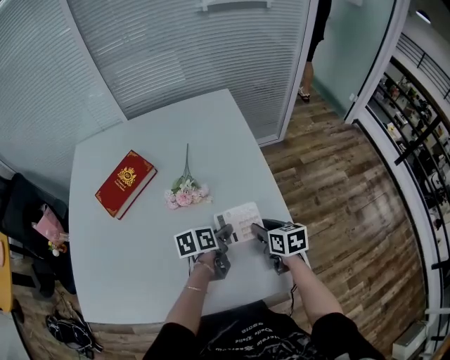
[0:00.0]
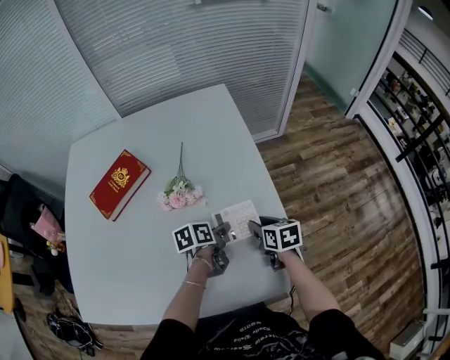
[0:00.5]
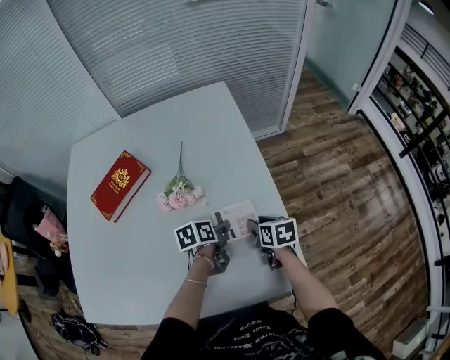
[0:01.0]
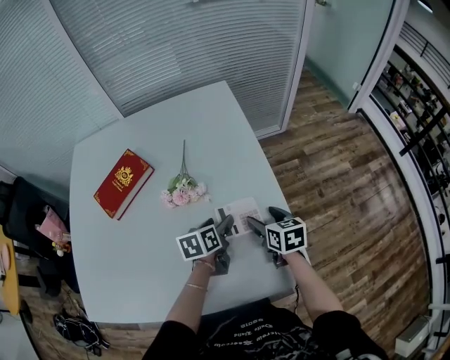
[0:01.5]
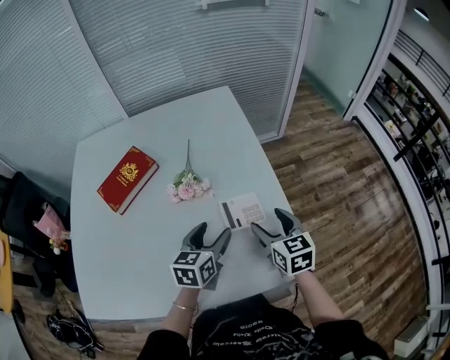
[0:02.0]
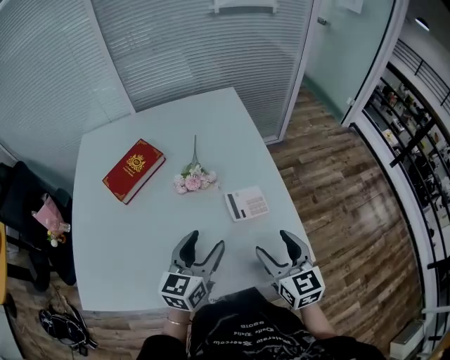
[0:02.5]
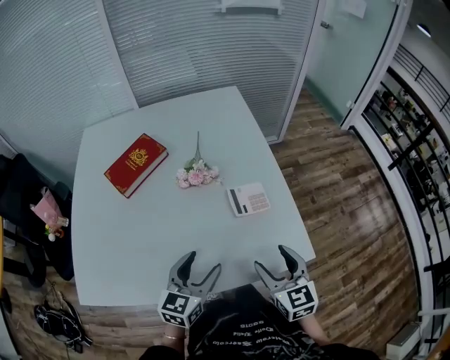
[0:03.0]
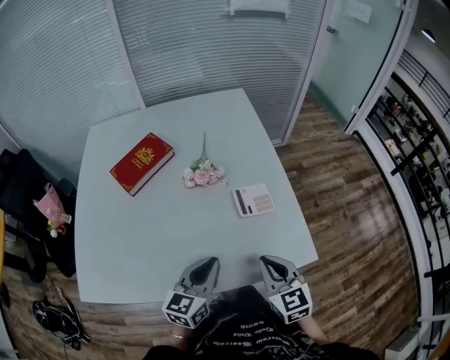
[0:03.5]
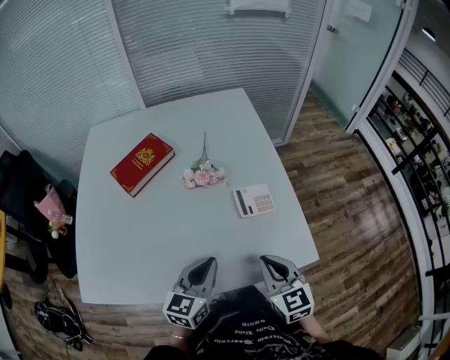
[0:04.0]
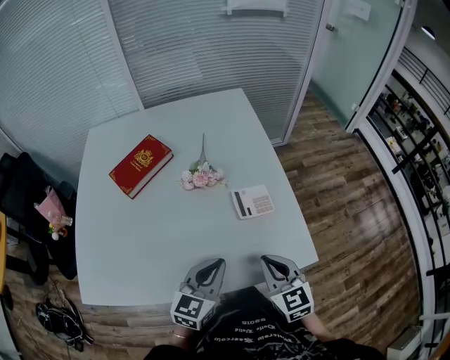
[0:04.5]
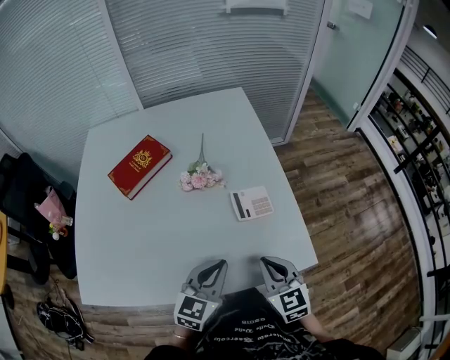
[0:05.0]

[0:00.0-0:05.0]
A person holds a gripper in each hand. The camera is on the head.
0.0 to 2.5 s: The left gripper goes some 20 cm upward, backward and to the left, rotates about 50 degrees, and opens its fingers, while the right gripper travels backward and upward by roughly 20 cm, turns by some 30 degrees, and opens.
2.5 to 5.0 s: Both grippers travel together backward, roughly 5 cm. The right gripper closes its fingers; the left gripper closes up.

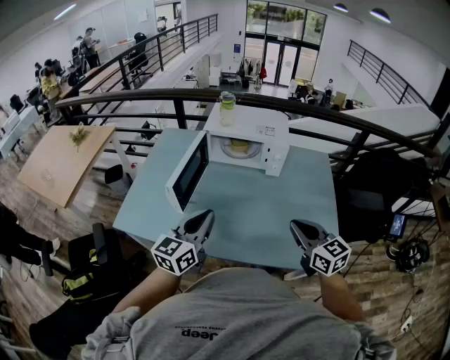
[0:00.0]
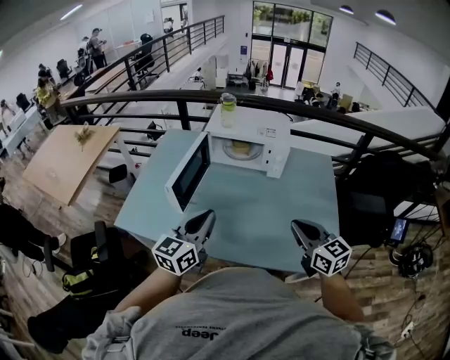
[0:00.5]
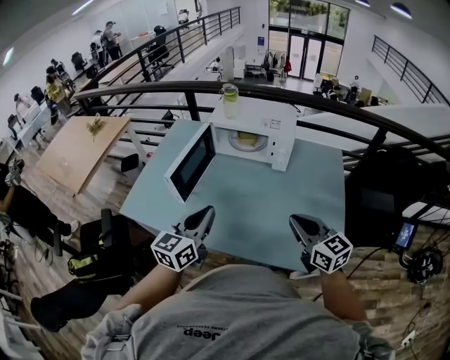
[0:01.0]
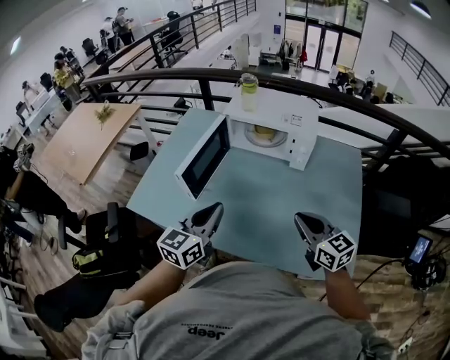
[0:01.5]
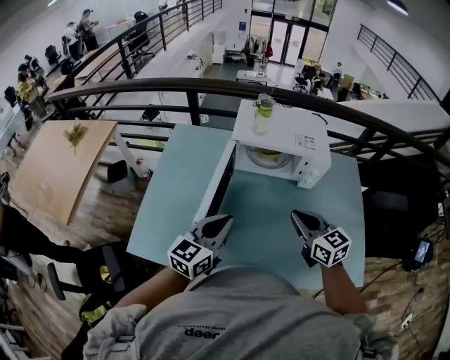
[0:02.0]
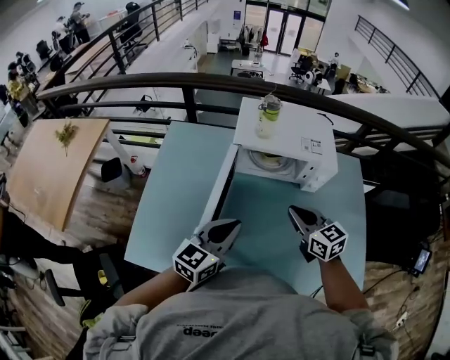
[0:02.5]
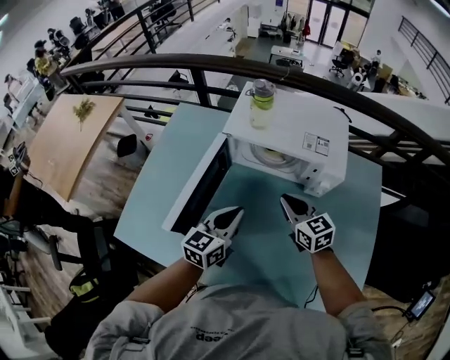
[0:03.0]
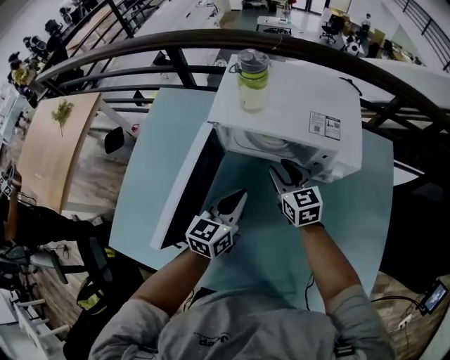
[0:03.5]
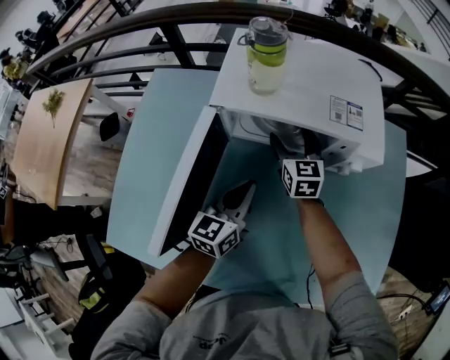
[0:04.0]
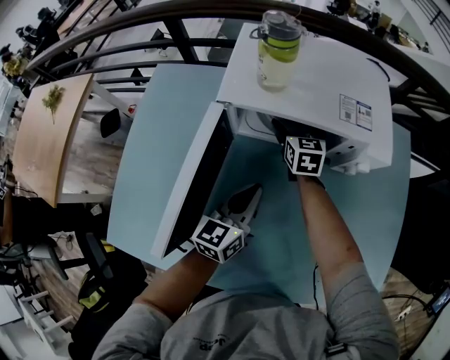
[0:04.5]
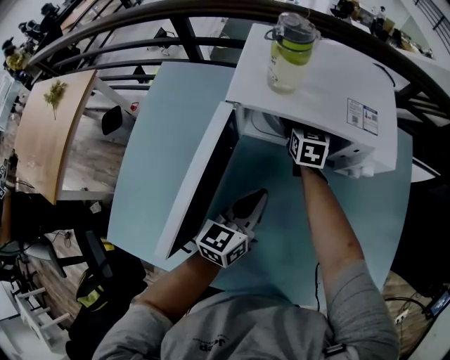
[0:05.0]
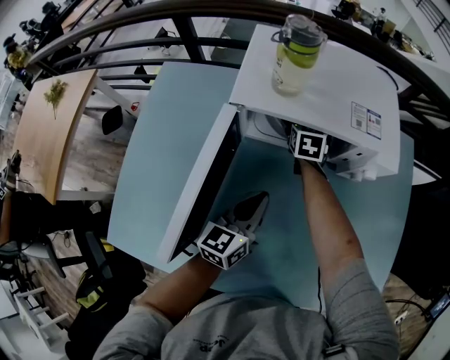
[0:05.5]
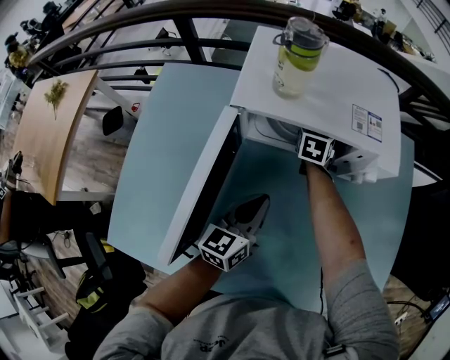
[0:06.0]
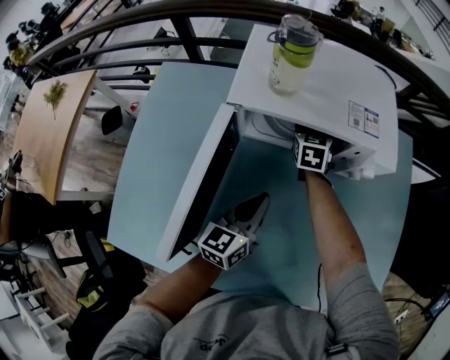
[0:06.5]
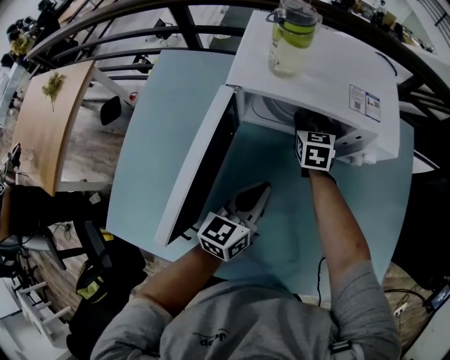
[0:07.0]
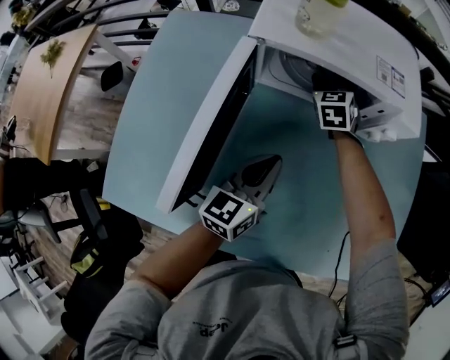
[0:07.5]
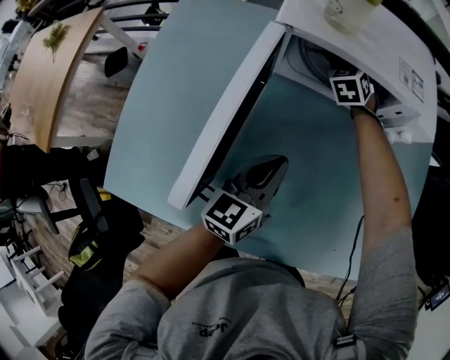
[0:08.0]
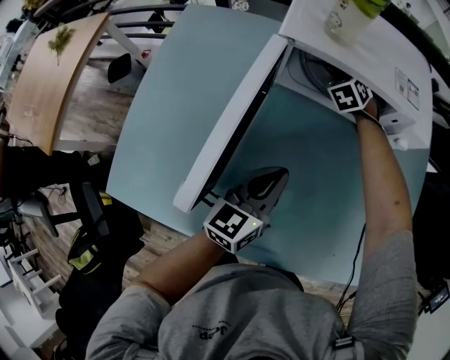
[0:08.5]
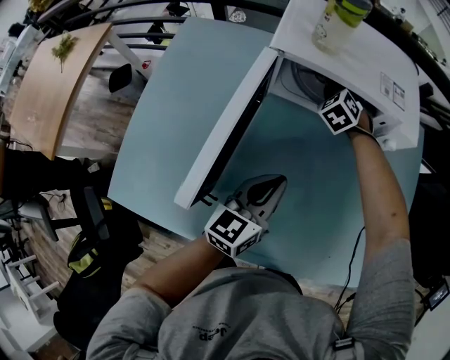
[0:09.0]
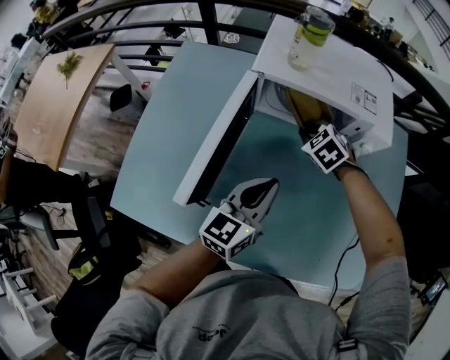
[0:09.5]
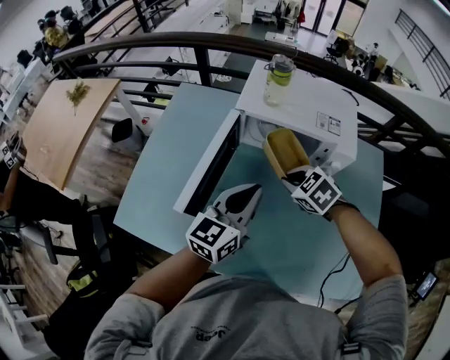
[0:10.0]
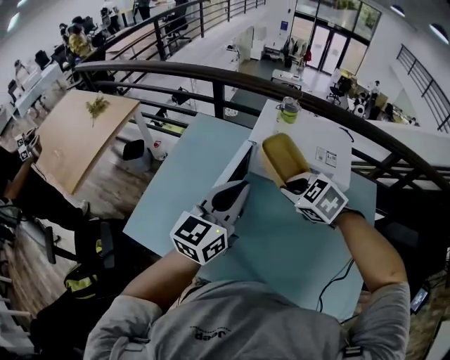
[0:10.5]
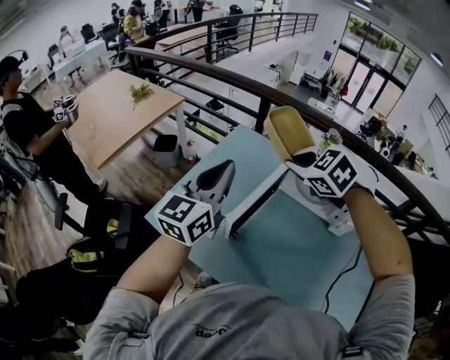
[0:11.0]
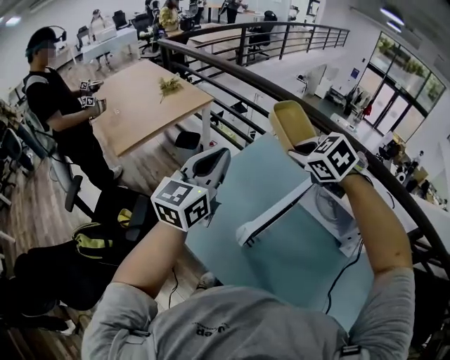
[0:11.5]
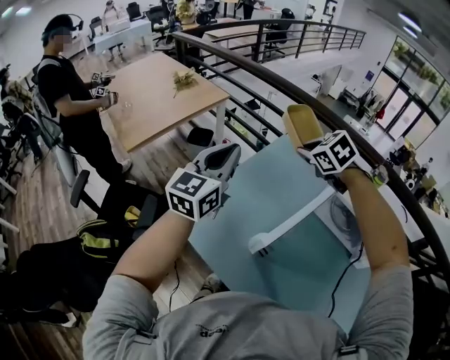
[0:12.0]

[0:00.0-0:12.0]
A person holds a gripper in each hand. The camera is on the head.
0.0 to 2.0 s: The grippers both shift forward and to the left by roughly 20 cm.
2.0 to 4.0 s: The right gripper is displaced forward and downward by about 35 cm, and opens its fingers; the left gripper is displaced forward, downward and to the right by approximately 30 cm.
4.0 to 6.0 s: The right gripper travels forward by approximately 10 cm, rotates about 30 degrees, and closes up.
6.0 to 8.0 s: The right gripper swivels some 40 degrees, while the left gripper moves backward, roughly 5 cm.
8.0 to 10.0 s: The right gripper ends up some 30 cm from where it was, changes its angle by approximately 50 degrees, and closes its fingers. Meanwhile the left gripper goes roughly 15 cm upward.
10.0 to 12.0 s: Both grippers travel together to the left, forward and upward, roughly 40 cm. The left gripper turns by about 40 degrees, while the right gripper swivels about 20 degrees.

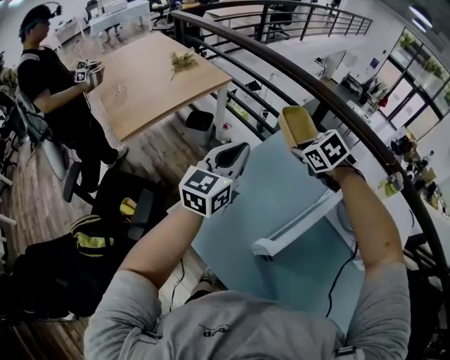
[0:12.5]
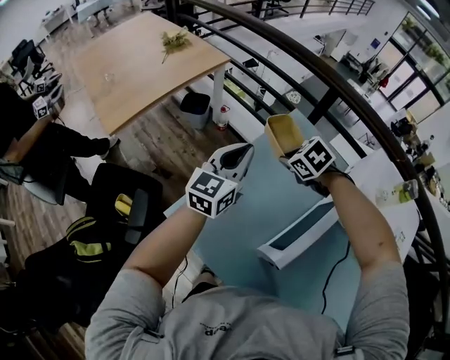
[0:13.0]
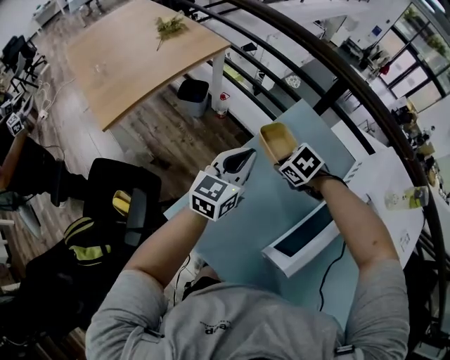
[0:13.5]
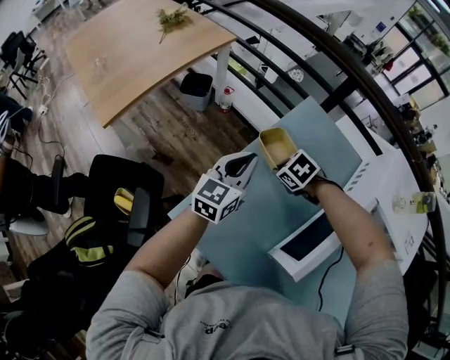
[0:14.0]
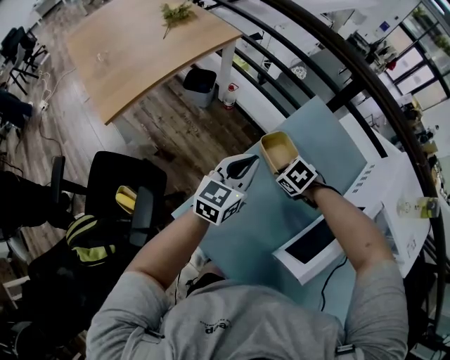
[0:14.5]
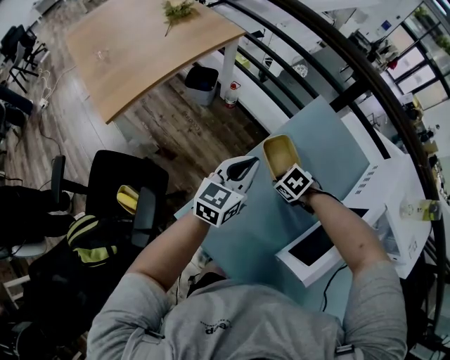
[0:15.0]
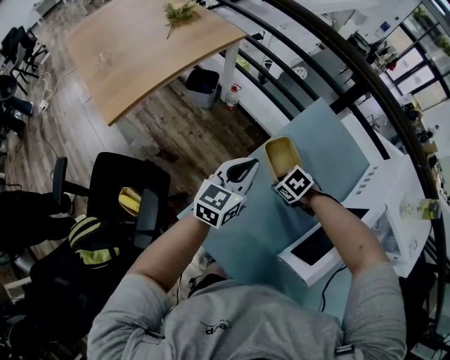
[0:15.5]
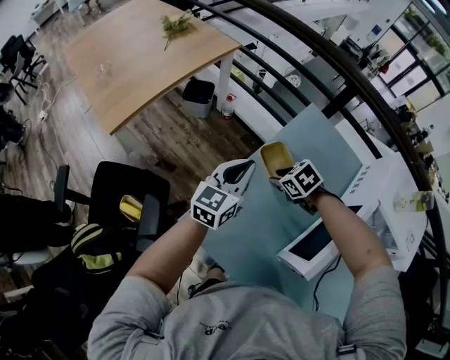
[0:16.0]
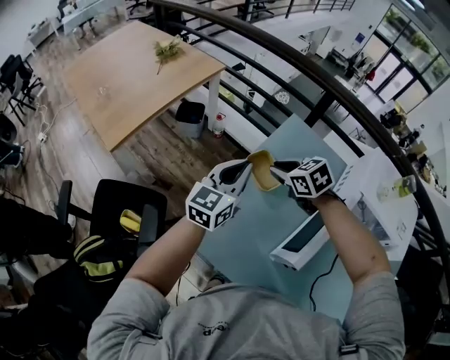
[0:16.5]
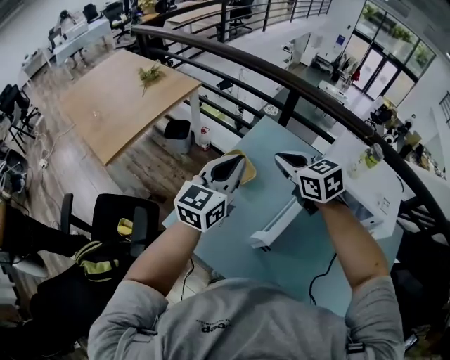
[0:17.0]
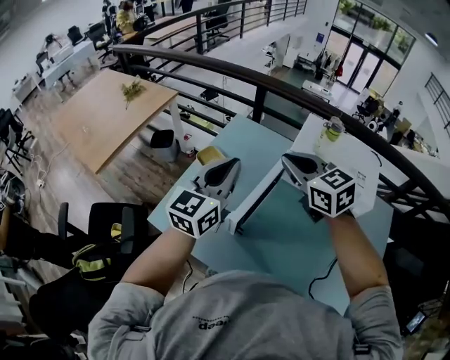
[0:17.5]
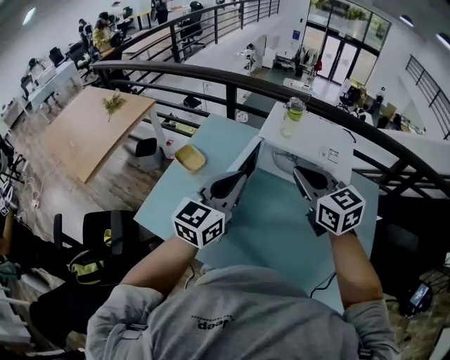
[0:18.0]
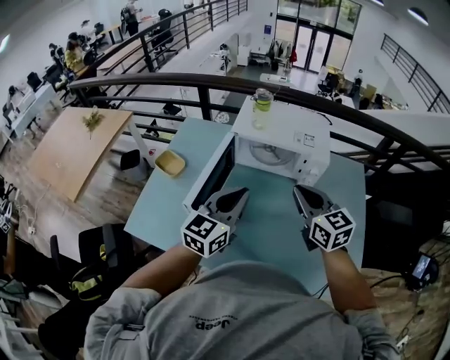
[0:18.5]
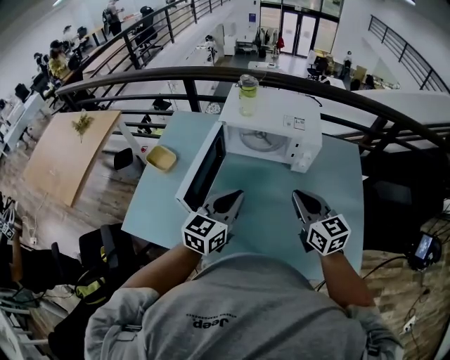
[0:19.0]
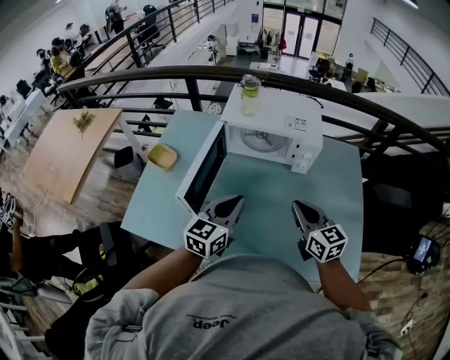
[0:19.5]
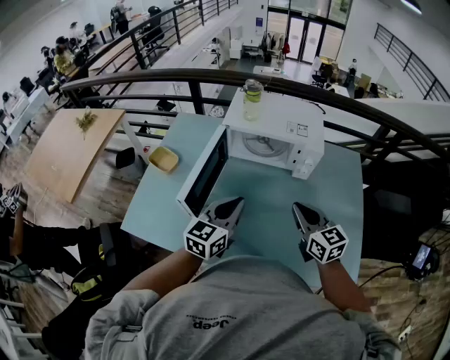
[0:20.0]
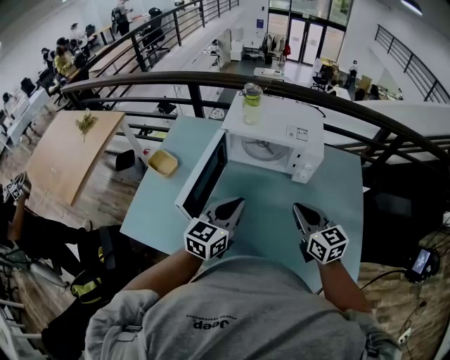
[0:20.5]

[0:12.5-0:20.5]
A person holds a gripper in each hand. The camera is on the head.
12.5 to 14.5 s: Both grippers move downward, approximately 20 cm. The right gripper changes its angle by roughly 20 degrees.
14.5 to 16.5 s: The left gripper heads upward, covering roughly 10 cm. The right gripper shifts about 20 cm upward, and rotates some 30 degrees.
16.5 to 18.5 s: The pair of grippers is taken some 50 cm. The right gripper angles its fingers upward, by approximately 30 degrees; the left gripper swivels some 30 degrees.
18.5 to 20.5 s: The two grippers go roughly 5 cm downward.

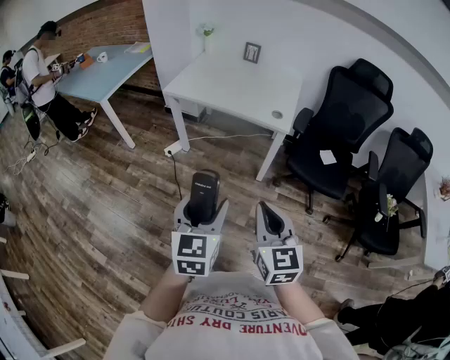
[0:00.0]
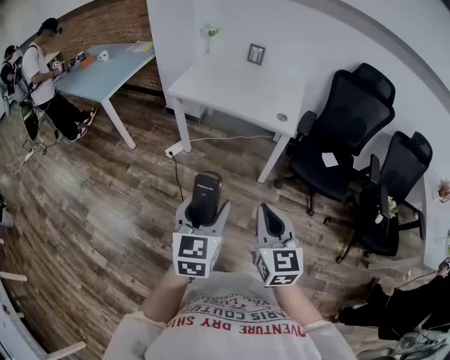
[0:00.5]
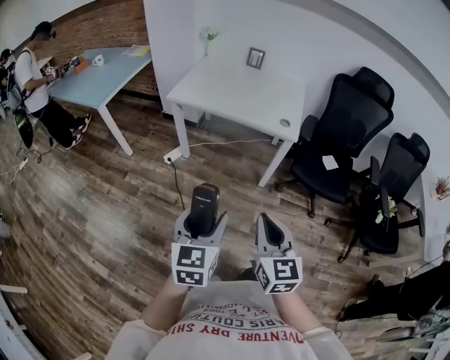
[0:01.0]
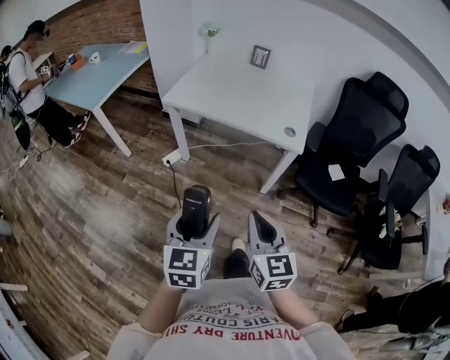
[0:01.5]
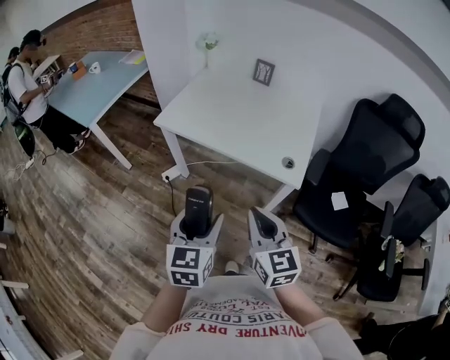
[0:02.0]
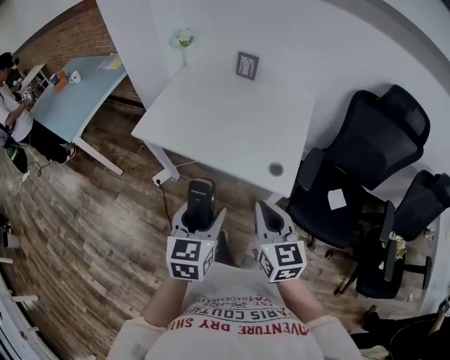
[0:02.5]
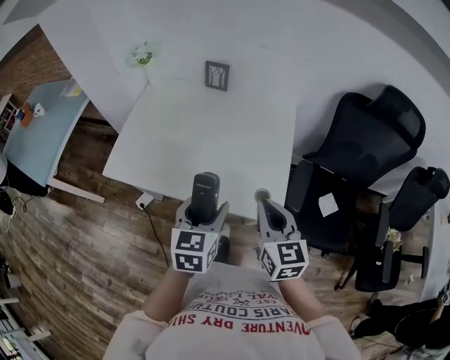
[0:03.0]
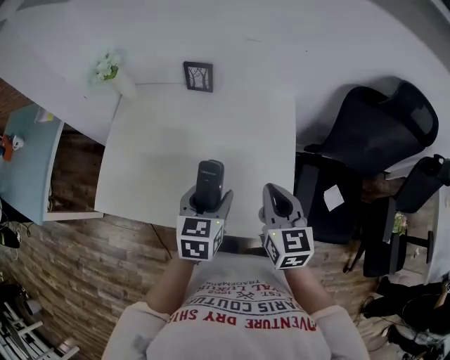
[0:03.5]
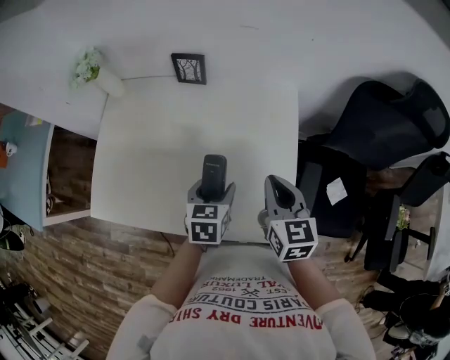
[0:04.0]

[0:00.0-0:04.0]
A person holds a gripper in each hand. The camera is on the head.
0.0 to 2.0 s: The two grippers go about 30 cm forward.
2.0 to 4.0 s: The pair of grippers is taken approximately 50 cm. The right gripper swivels about 30 degrees. The left gripper rotates approximately 30 degrees.
